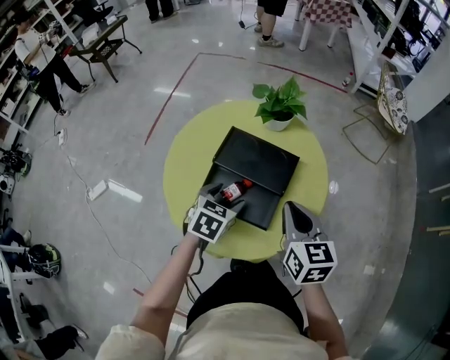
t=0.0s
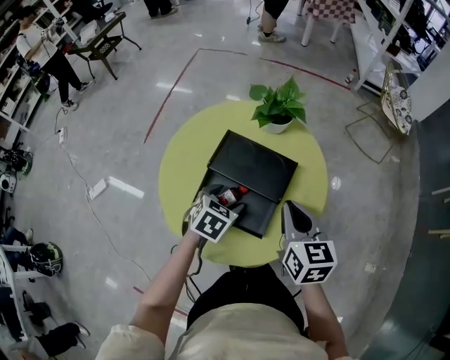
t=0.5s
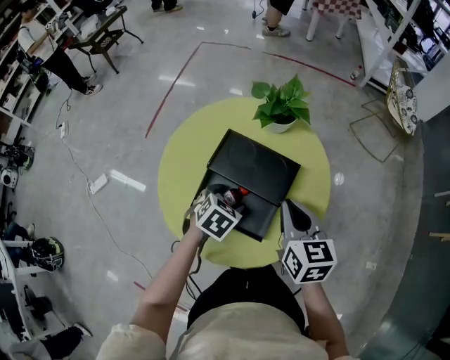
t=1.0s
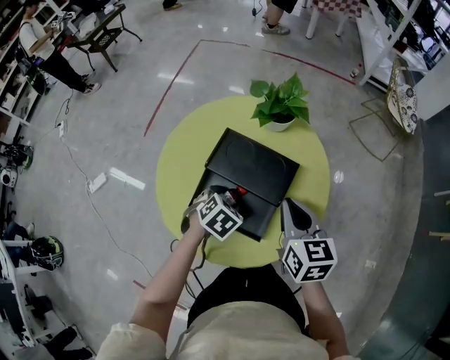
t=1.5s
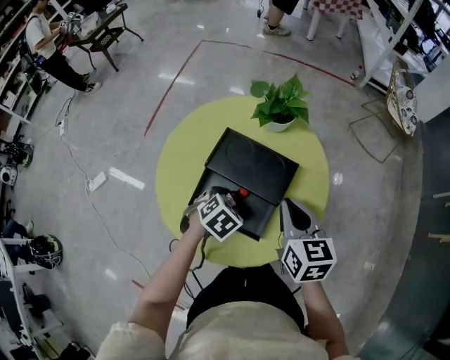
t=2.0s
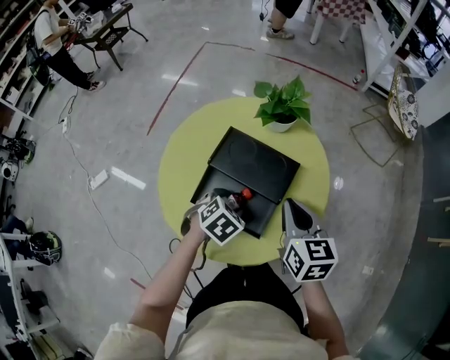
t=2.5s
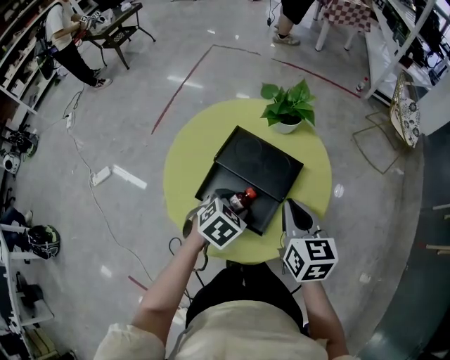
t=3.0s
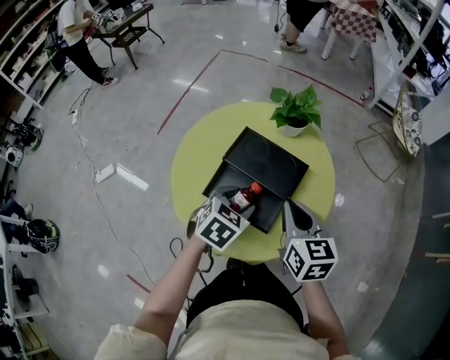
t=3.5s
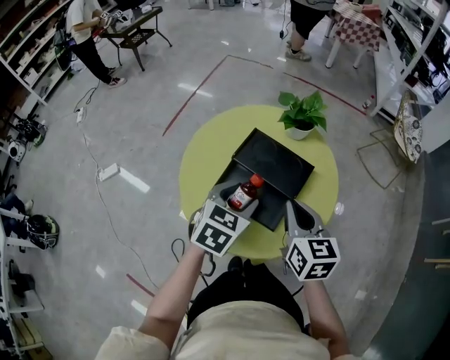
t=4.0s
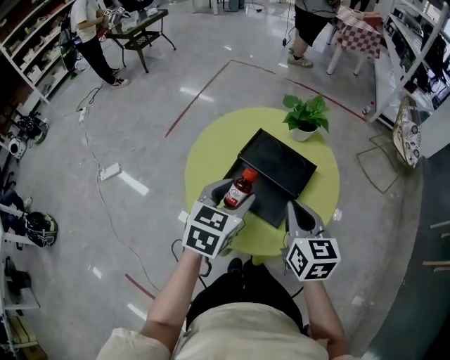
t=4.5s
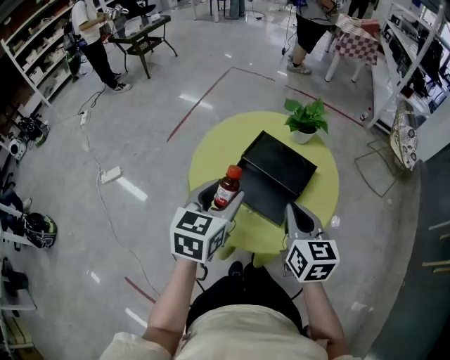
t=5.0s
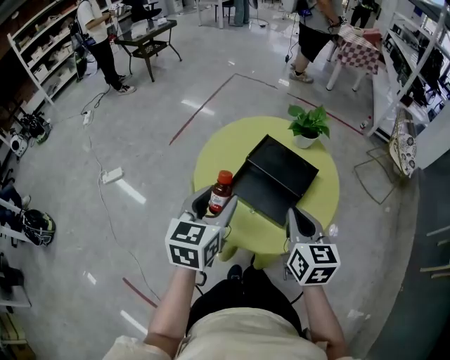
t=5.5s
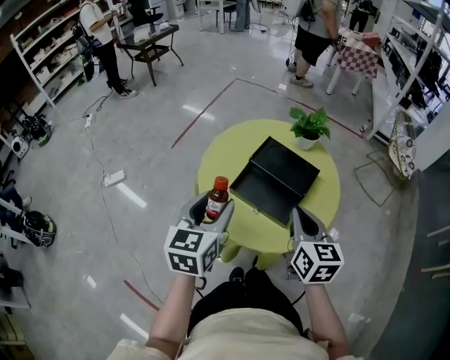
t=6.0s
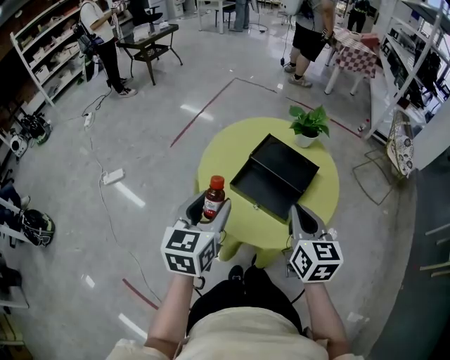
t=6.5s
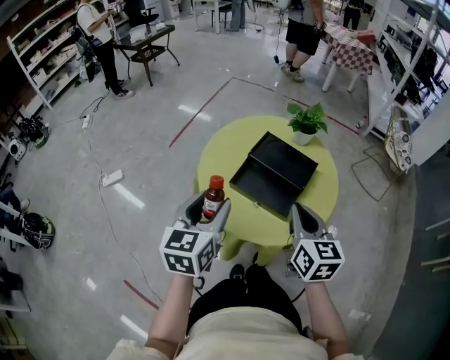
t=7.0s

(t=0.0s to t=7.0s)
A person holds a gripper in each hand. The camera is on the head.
t=0.0s - t=2.0s: The left gripper is displaced downward by some 5 cm, and turns by about 20 degrees; the right gripper ends up some 5 cm from where it was.
t=2.0s - t=3.5s: The left gripper heads upward, covering about 10 cm, and swivels roughly 20 degrees.
t=3.5s - t=5.0s: The left gripper travels upward and to the left by some 15 cm, and changes its angle by about 30 degrees, while the right gripper moves backward, about 5 cm.
t=5.0s - t=7.0s: The right gripper changes place by about 5 cm; the left gripper moves backward and to the left, approximately 10 cm.

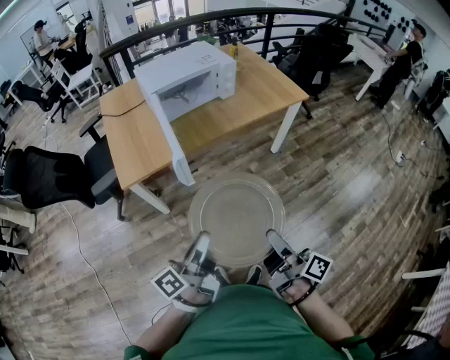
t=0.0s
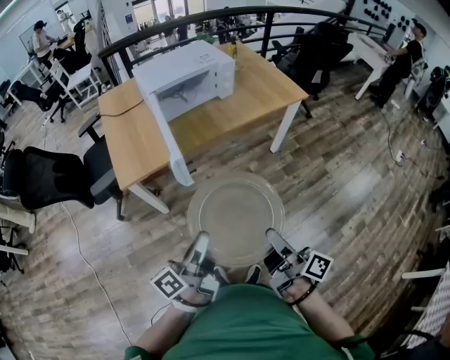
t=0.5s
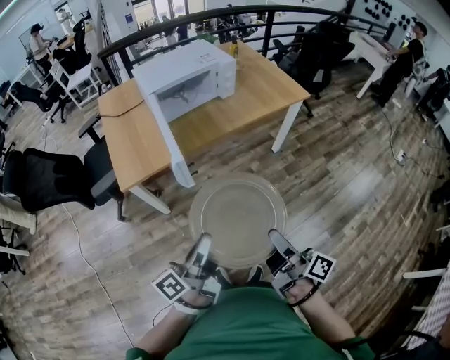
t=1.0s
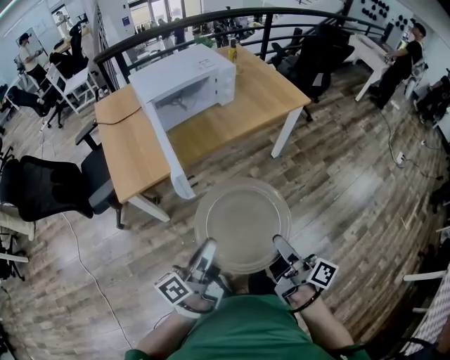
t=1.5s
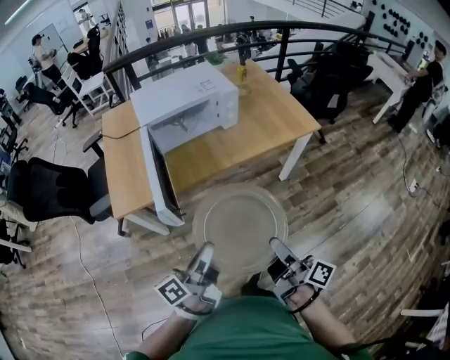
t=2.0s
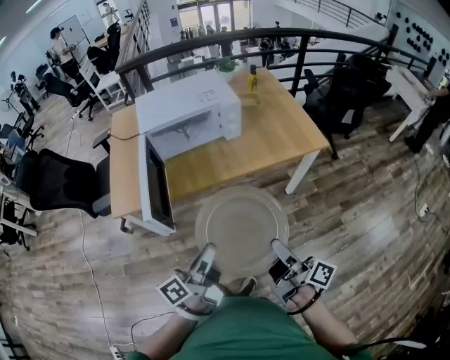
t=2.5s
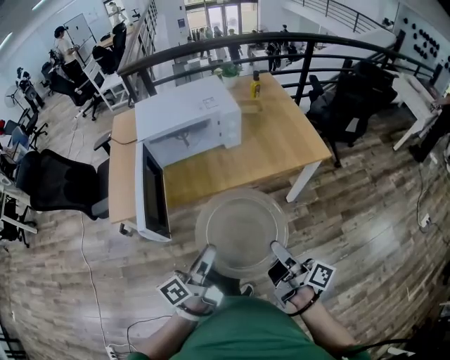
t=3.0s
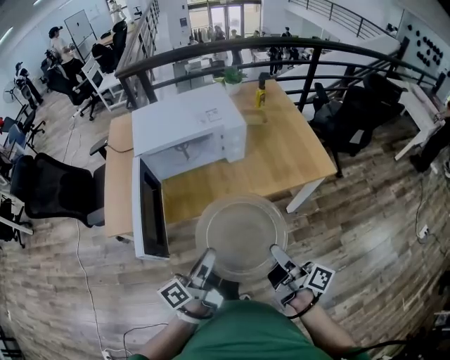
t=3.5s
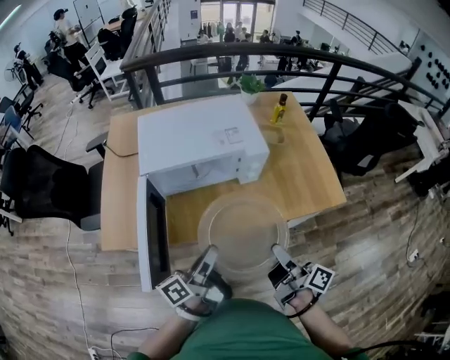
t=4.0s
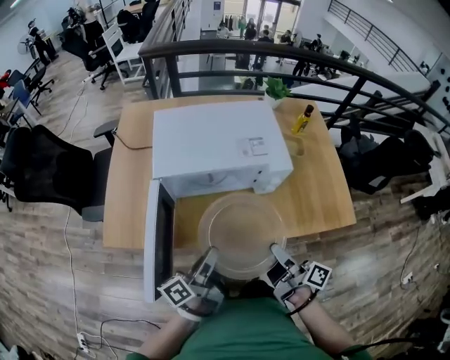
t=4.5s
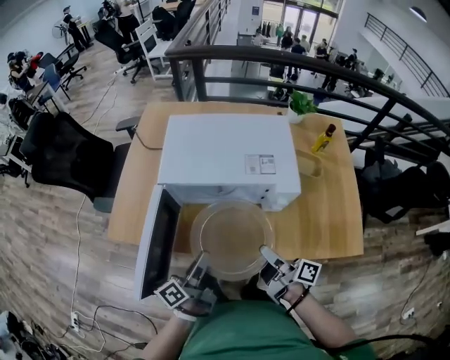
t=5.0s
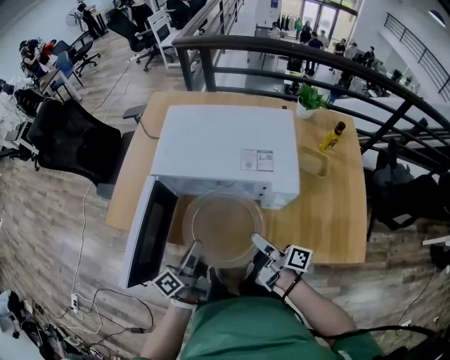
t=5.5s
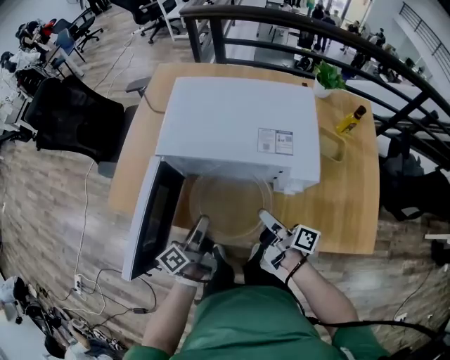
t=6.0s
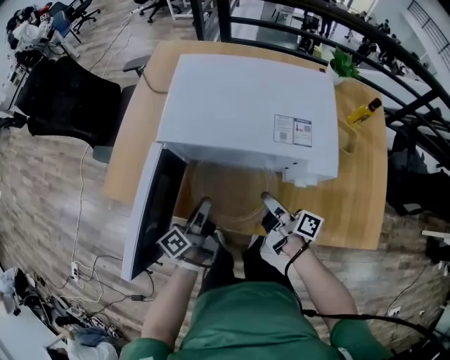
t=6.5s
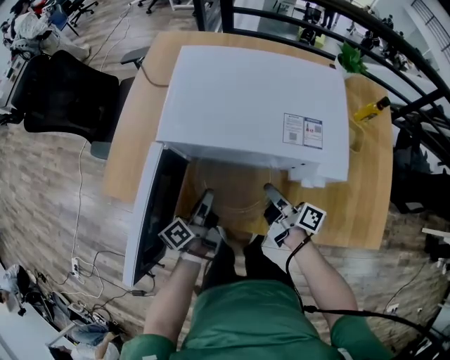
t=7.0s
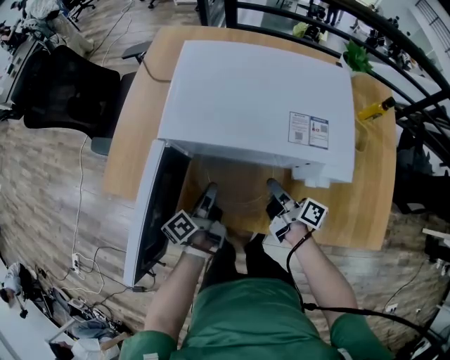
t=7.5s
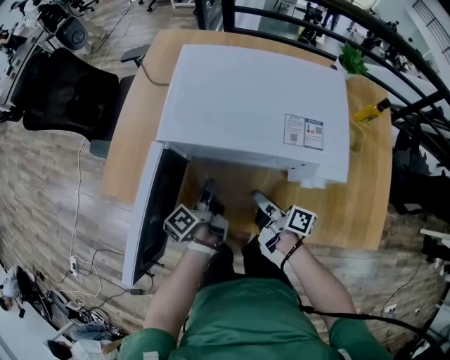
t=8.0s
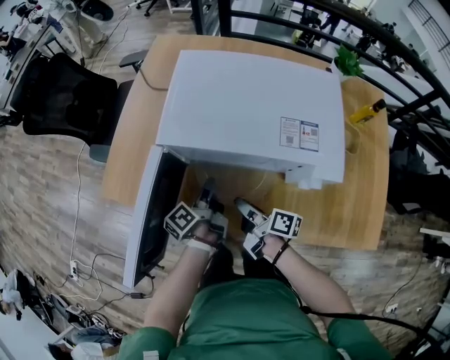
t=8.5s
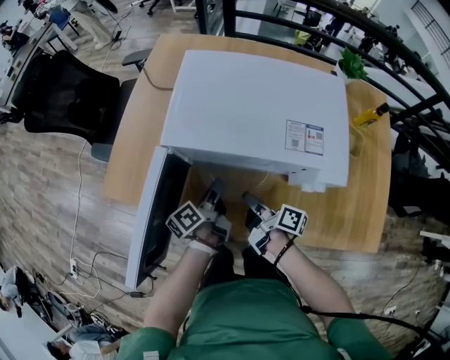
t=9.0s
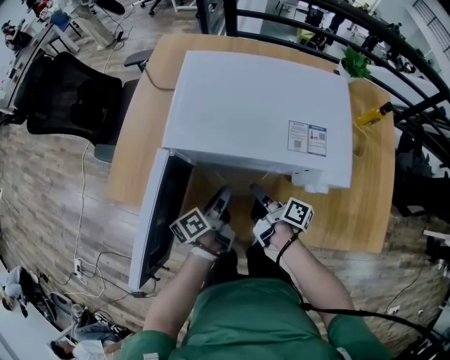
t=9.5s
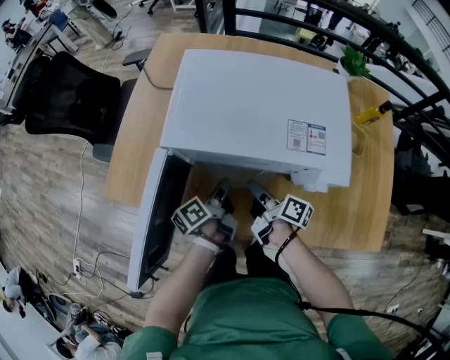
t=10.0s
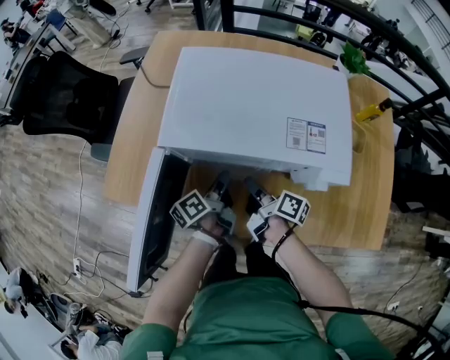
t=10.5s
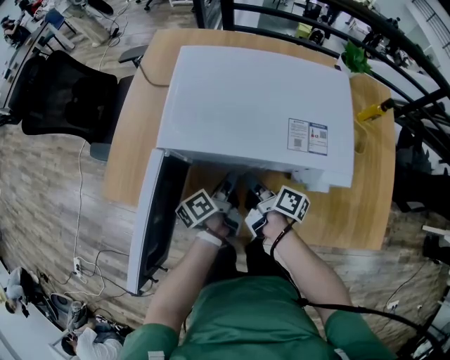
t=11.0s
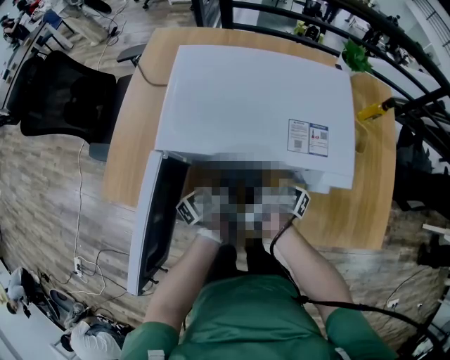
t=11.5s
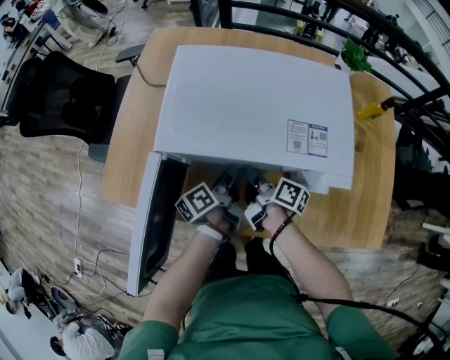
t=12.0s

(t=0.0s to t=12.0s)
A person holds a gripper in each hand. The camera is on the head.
t=0.0s - t=2.0s: The two grippers go roughly 20 cm forward and to the right.
t=2.0s - t=4.0s: The grippers both shift forward by approximately 30 cm.
t=4.0s - t=6.0s: The left gripper ends up some 20 cm from where it was, and turns by approximately 30 degrees, while the right gripper ends up approximately 25 cm from where it was, and changes its angle by roughly 30 degrees.
t=6.0s - t=8.0s: The left gripper travels forward and downward by about 10 cm. The right gripper moves downward, forward and to the left, approximately 10 cm.
t=8.0s - t=10.0s: The grippers move only a little.
t=10.0s - t=12.0s: The left gripper ends up roughly 5 cm from where it was. The right gripper shifts by about 5 cm.

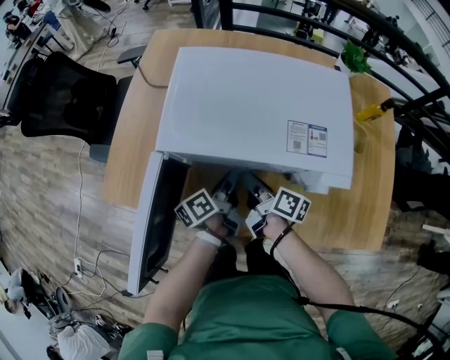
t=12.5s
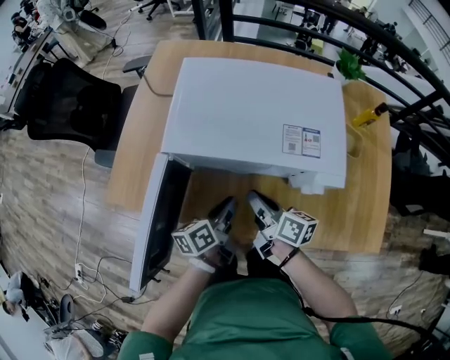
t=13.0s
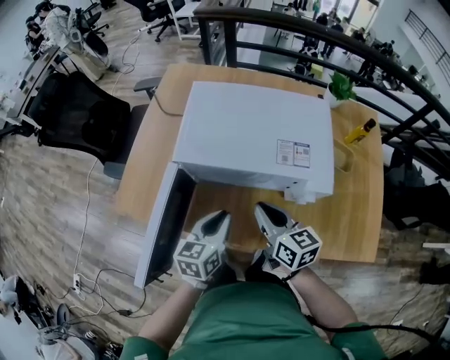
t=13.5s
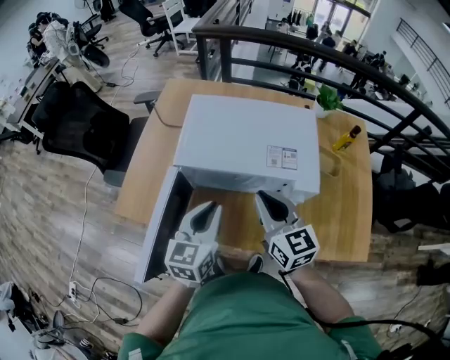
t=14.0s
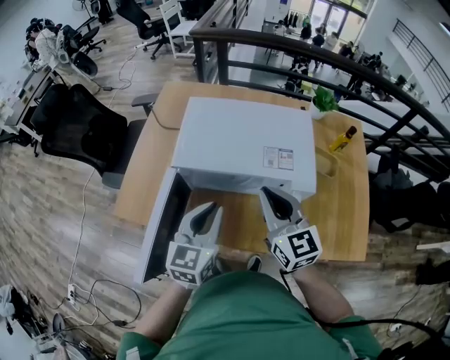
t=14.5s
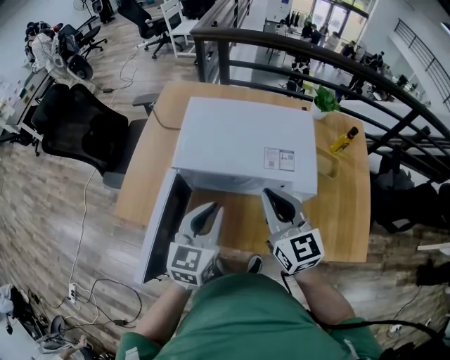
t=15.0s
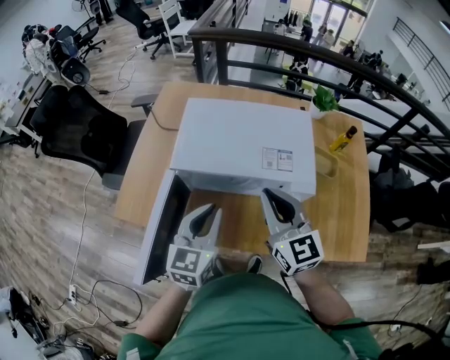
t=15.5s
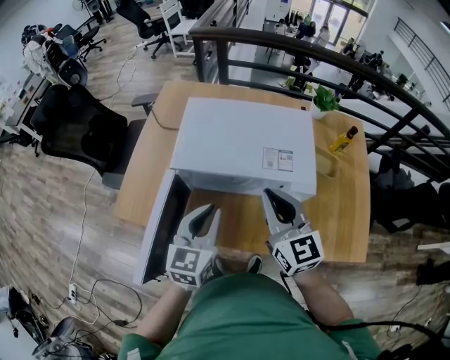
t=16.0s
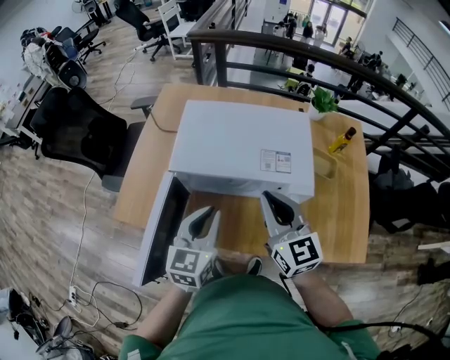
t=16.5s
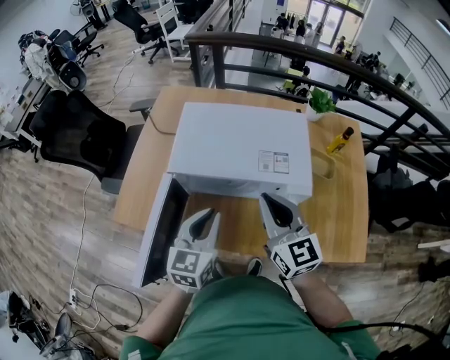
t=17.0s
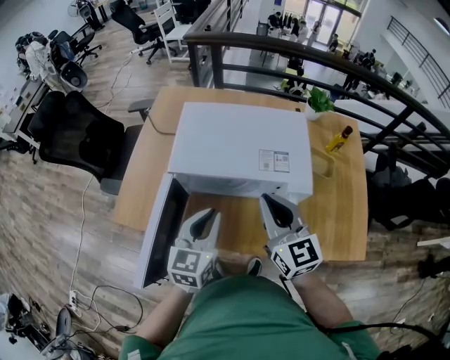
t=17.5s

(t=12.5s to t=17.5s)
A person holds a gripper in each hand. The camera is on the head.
t=12.5s - t=15.0s: The left gripper is displaced upward and backward by approximately 25 cm, and rotates around the line of its fingers by some 70 degrees, clockwise from behind, while the right gripper goes approximately 30 cm upward, and twists approximately 70 degrees counterclockwise, seen from behind.
t=15.0s - t=17.5s: The grippers make only small movements.

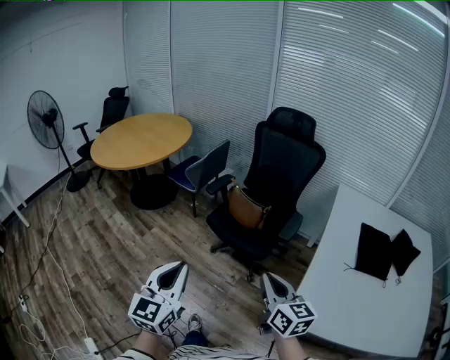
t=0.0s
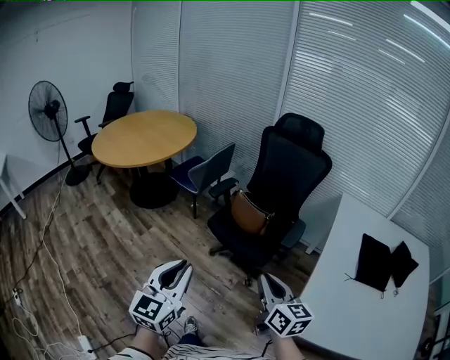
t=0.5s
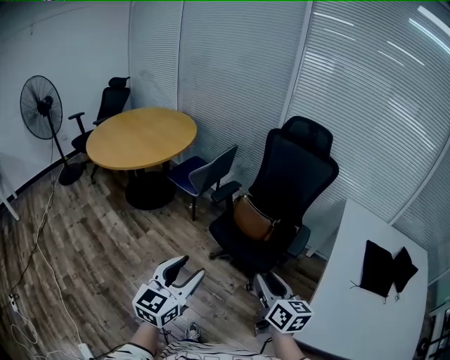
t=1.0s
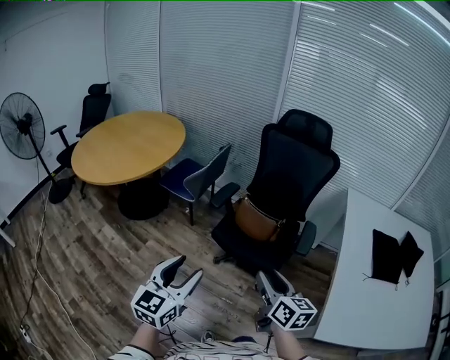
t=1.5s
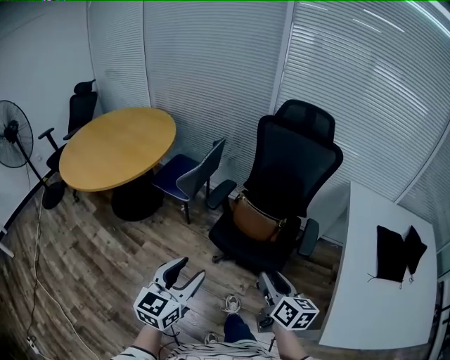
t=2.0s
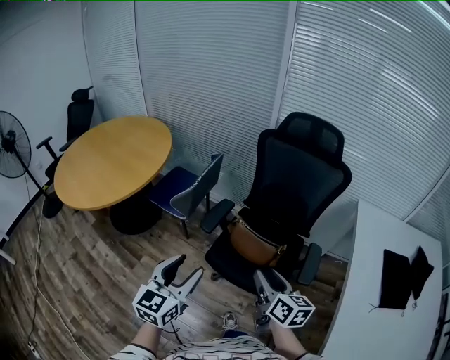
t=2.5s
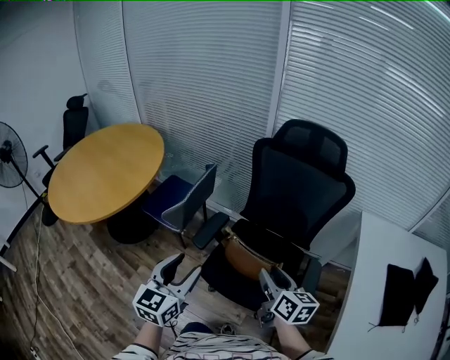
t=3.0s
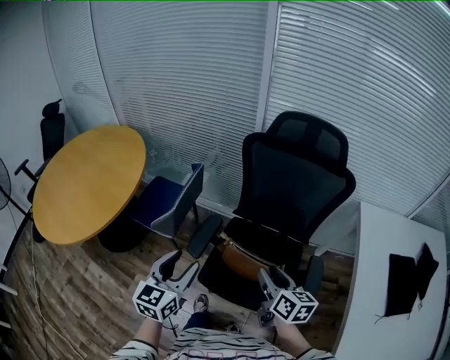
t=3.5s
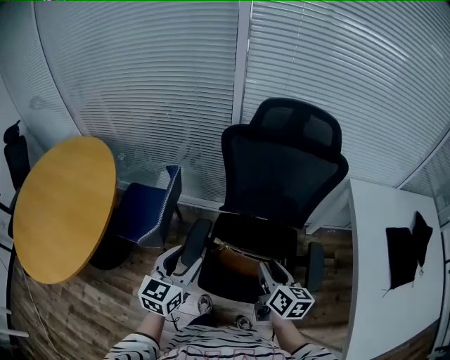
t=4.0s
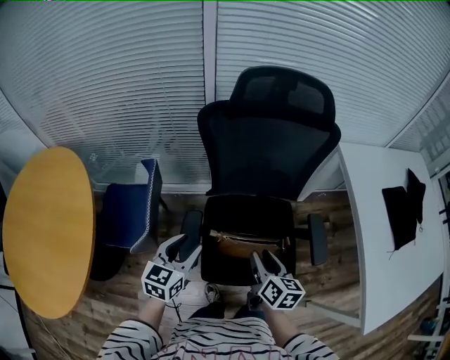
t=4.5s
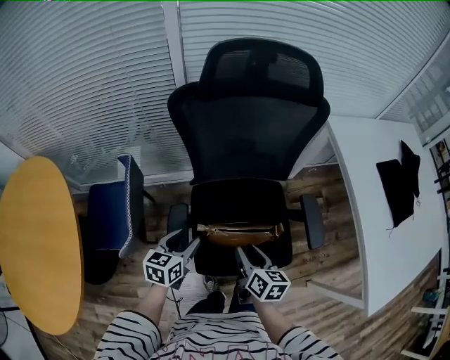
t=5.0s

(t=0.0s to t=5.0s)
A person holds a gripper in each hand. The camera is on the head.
t=0.0s - t=2.5s: Both grippers travel together forward, roughly 35 cm. The right gripper opens its fingers. The left gripper opens its fingers.
t=2.5s - t=5.0s: The right gripper ends up roughly 30 cm from where it was, and turns by some 40 degrees; the left gripper shifts by about 40 cm, and turns by roughly 50 degrees.
